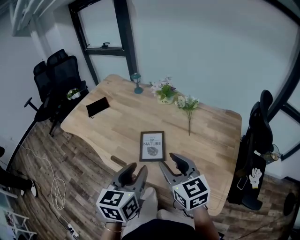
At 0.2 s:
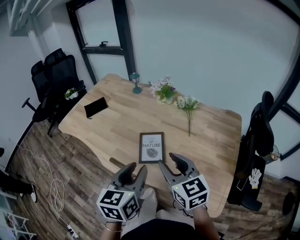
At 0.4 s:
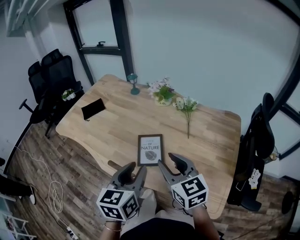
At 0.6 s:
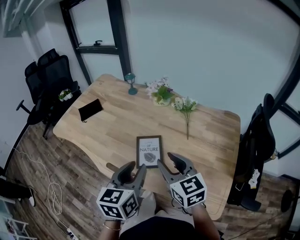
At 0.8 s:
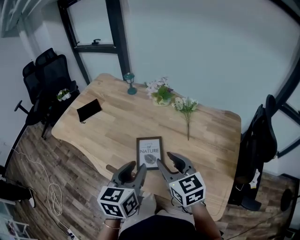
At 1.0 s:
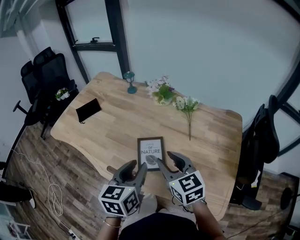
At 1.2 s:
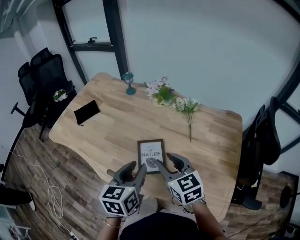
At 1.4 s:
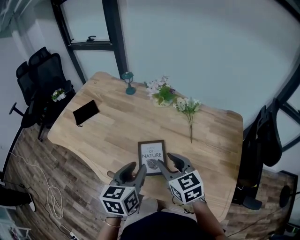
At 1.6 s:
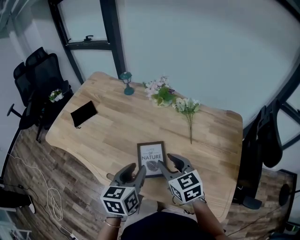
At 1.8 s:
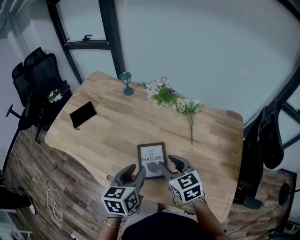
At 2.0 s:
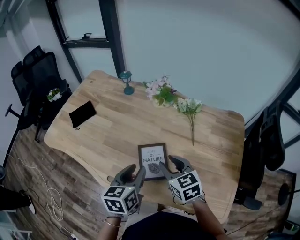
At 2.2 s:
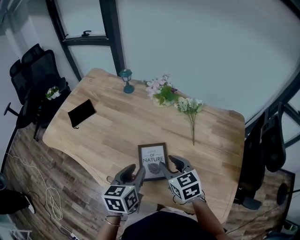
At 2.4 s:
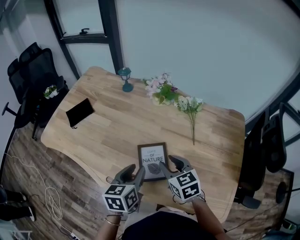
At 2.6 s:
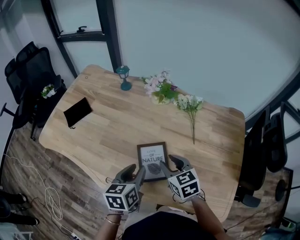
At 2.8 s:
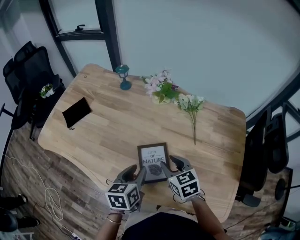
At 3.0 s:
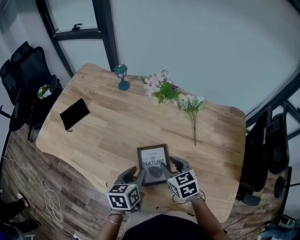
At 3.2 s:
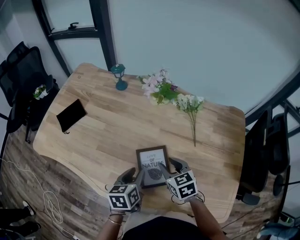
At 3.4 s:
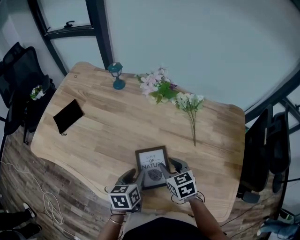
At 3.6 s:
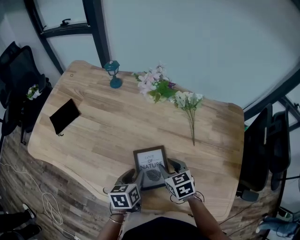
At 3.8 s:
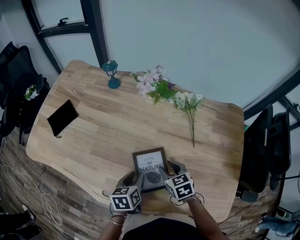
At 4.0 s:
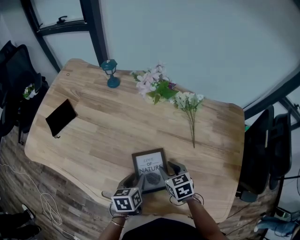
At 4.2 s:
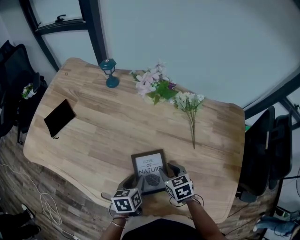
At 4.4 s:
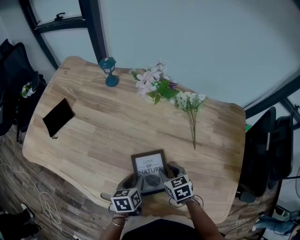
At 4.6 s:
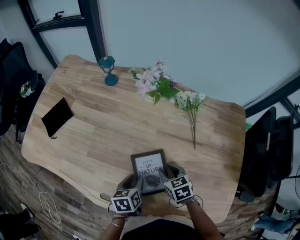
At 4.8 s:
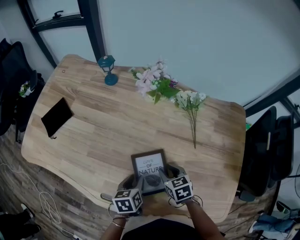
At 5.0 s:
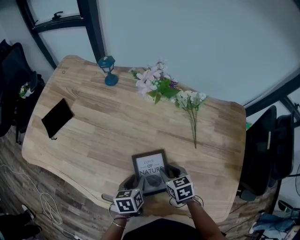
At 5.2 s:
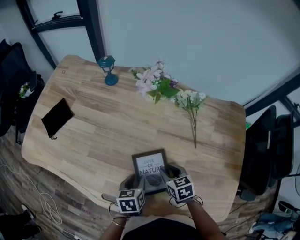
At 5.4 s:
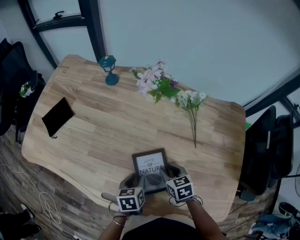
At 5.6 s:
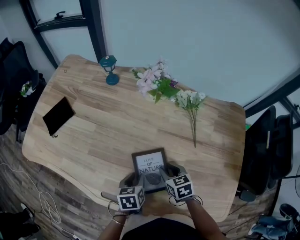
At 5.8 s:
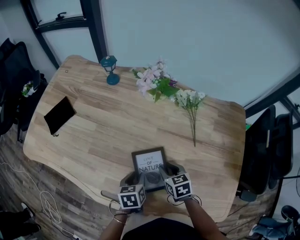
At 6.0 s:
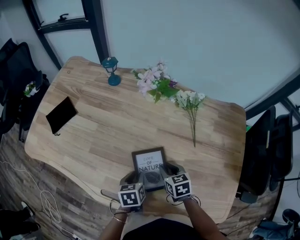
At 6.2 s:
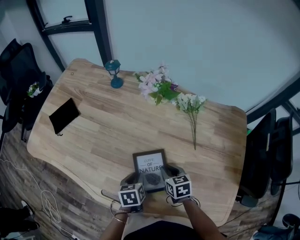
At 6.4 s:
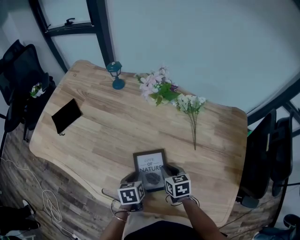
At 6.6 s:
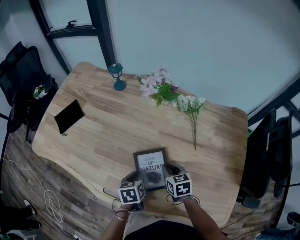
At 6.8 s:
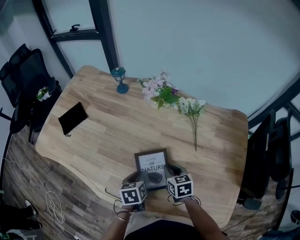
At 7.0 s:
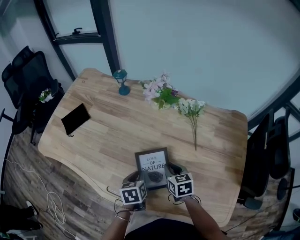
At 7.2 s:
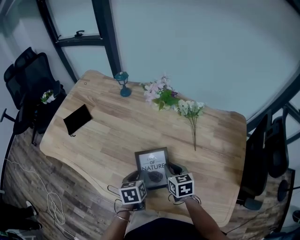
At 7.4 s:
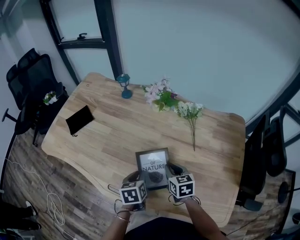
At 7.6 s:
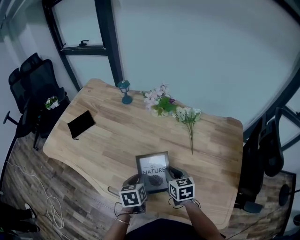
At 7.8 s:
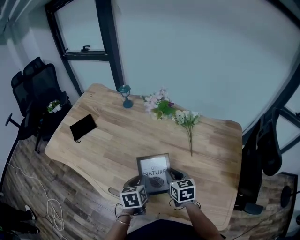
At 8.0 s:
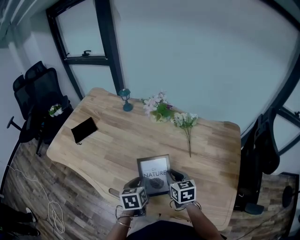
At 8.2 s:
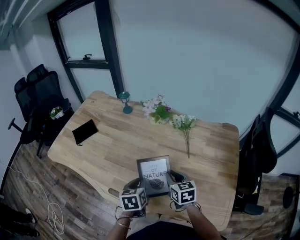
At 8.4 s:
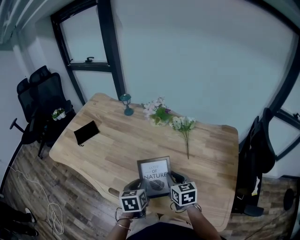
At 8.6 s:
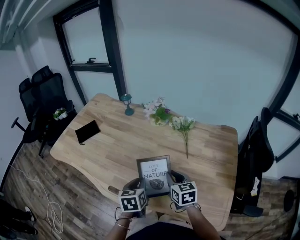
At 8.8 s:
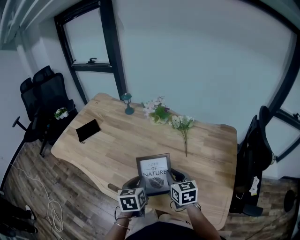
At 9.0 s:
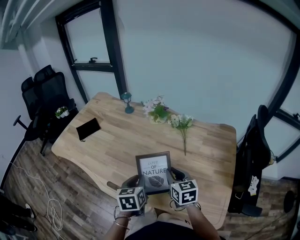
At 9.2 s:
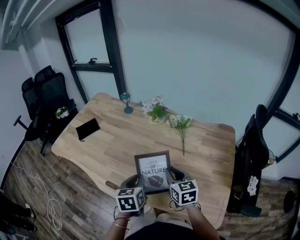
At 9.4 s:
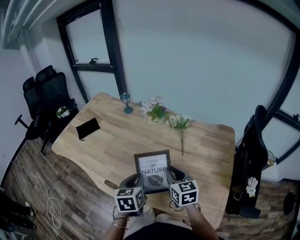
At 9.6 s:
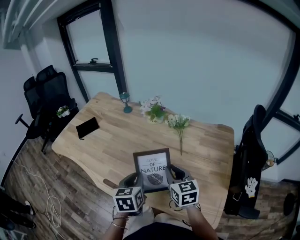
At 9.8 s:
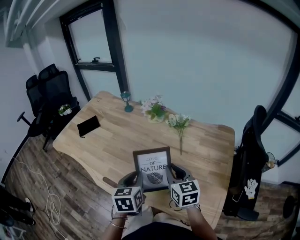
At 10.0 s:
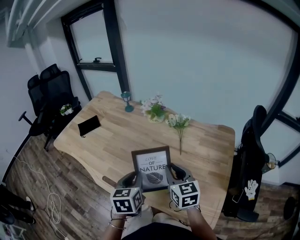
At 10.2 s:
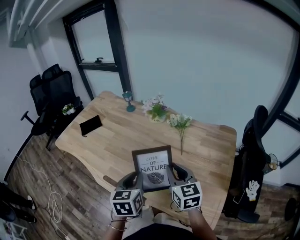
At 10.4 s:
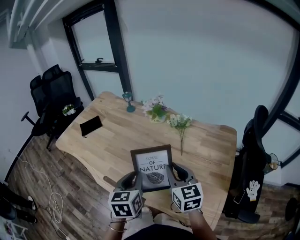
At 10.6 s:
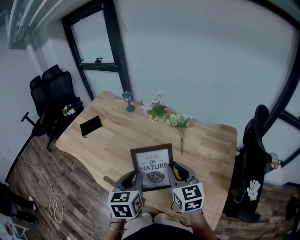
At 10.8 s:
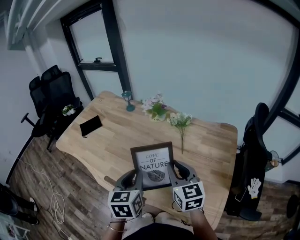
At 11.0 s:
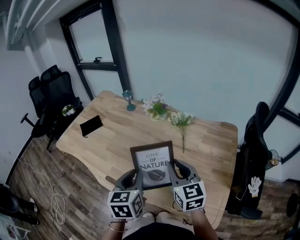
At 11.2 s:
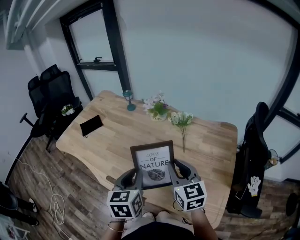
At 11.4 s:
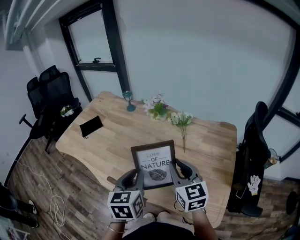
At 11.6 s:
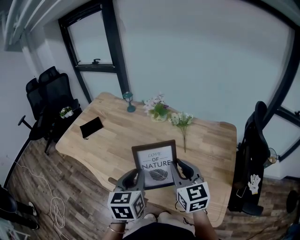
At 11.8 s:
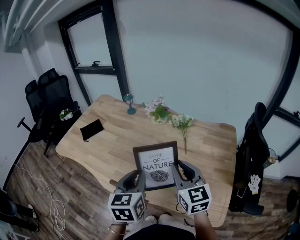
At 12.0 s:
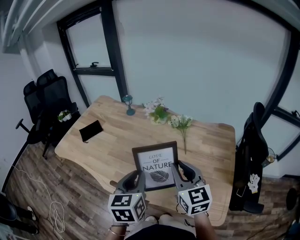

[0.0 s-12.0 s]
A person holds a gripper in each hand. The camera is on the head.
0.0 to 1.6 s: The grippers both shift forward and downward by about 15 cm.
1.6 to 3.0 s: The grippers both shift downward and forward by approximately 10 cm.
3.0 to 4.4 s: Both grippers travel together downward, some 10 cm.
4.4 to 6.0 s: The grippers move only a little.
6.0 to 7.6 s: Both grippers travel together upward, about 10 cm.
7.6 to 9.0 s: The two grippers go roughly 10 cm upward and backward.
9.0 to 10.4 s: Both grippers travel together upward, about 10 cm.
10.4 to 12.0 s: Both grippers move upward, some 5 cm.

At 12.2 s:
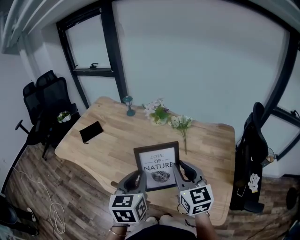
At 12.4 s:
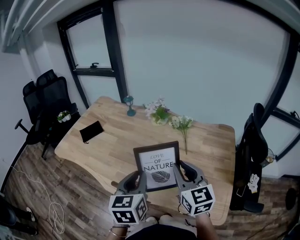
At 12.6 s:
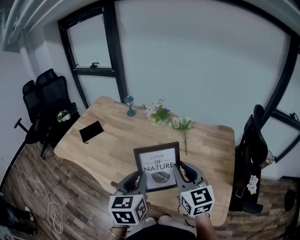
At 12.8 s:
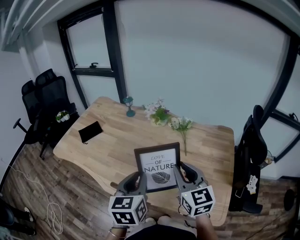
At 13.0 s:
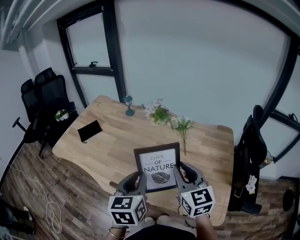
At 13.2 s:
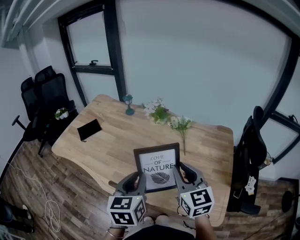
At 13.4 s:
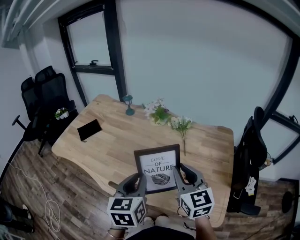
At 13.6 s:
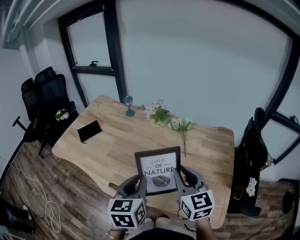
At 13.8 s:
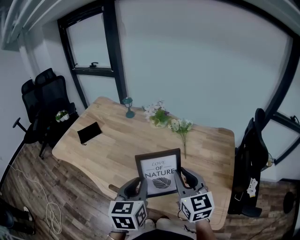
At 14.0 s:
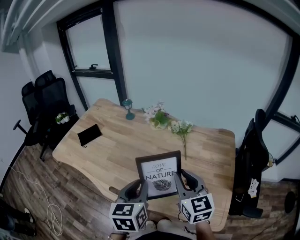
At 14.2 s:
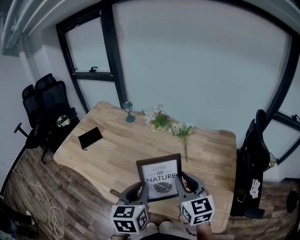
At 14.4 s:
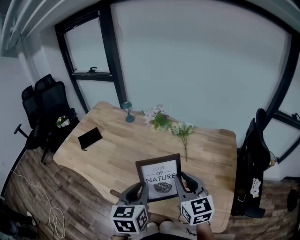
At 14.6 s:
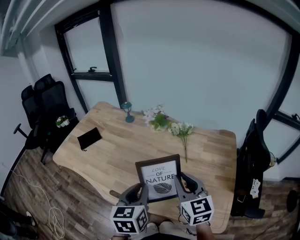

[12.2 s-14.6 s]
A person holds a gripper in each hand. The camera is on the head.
12.2 to 13.4 s: The two grippers keep their place.
13.4 to 14.6 s: The grippers make only small movements.

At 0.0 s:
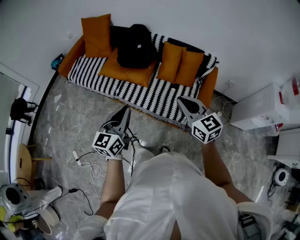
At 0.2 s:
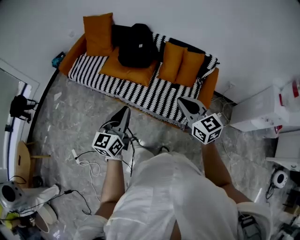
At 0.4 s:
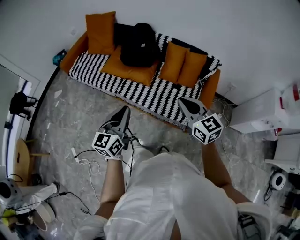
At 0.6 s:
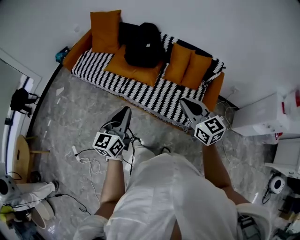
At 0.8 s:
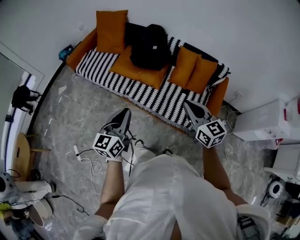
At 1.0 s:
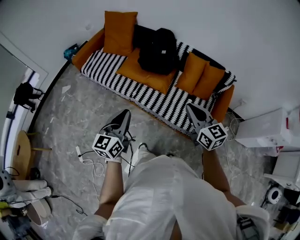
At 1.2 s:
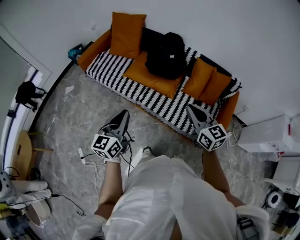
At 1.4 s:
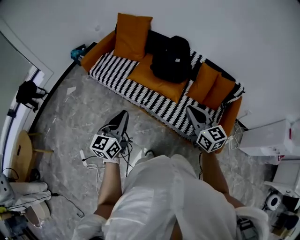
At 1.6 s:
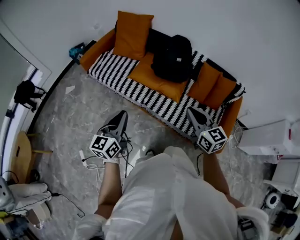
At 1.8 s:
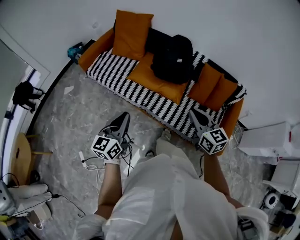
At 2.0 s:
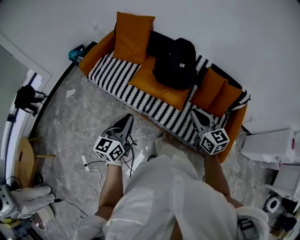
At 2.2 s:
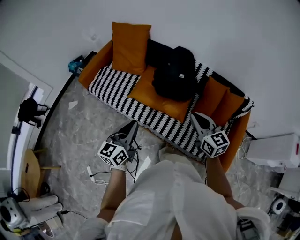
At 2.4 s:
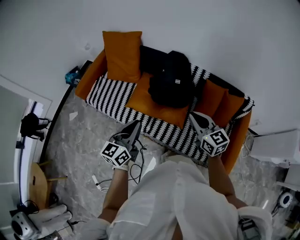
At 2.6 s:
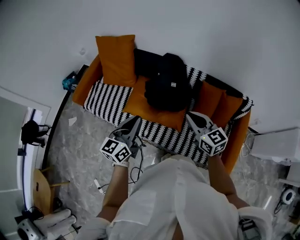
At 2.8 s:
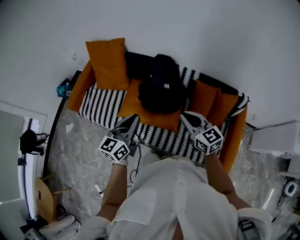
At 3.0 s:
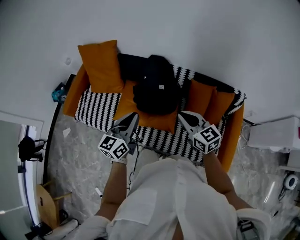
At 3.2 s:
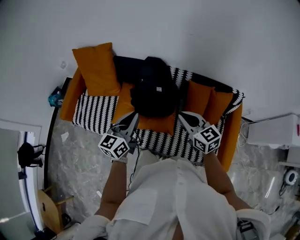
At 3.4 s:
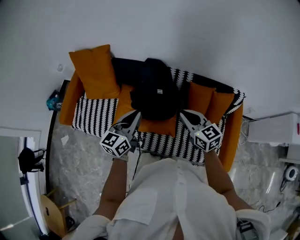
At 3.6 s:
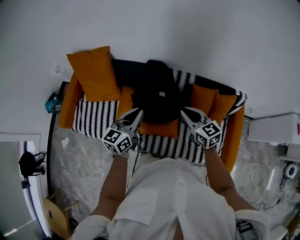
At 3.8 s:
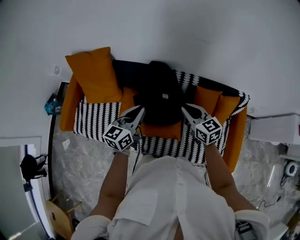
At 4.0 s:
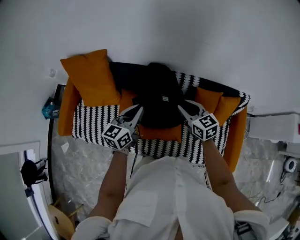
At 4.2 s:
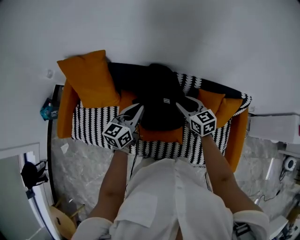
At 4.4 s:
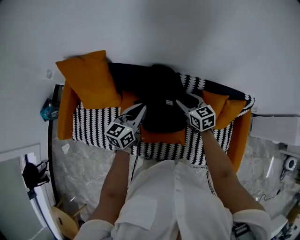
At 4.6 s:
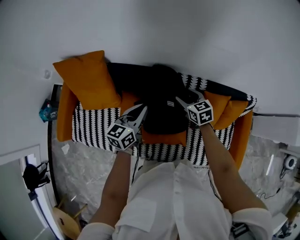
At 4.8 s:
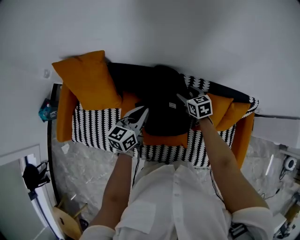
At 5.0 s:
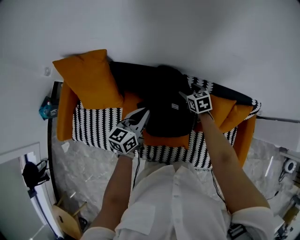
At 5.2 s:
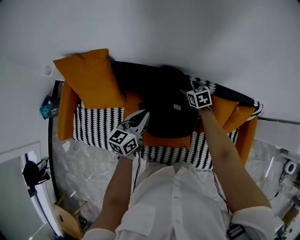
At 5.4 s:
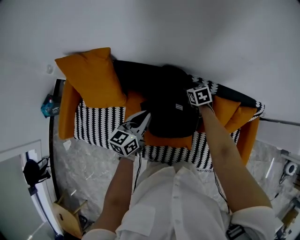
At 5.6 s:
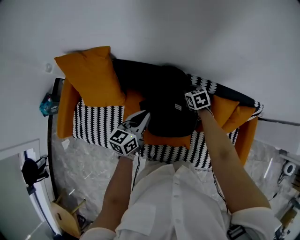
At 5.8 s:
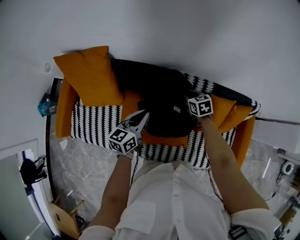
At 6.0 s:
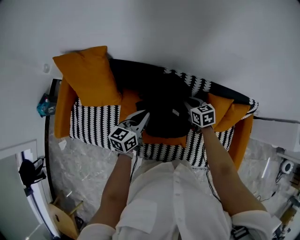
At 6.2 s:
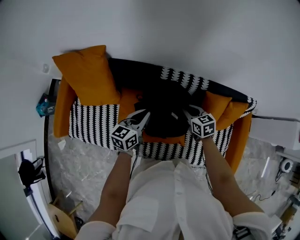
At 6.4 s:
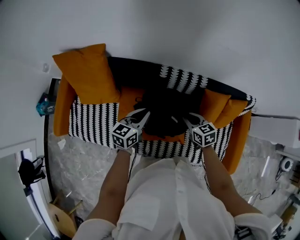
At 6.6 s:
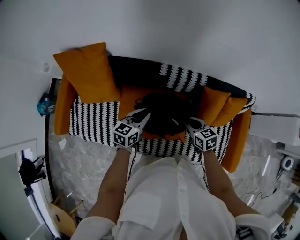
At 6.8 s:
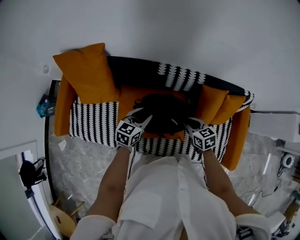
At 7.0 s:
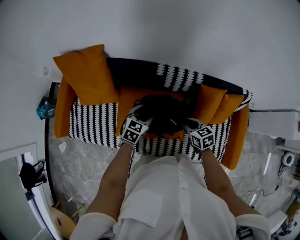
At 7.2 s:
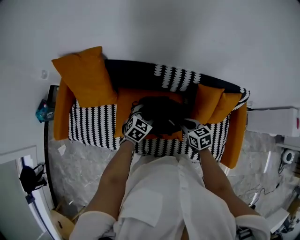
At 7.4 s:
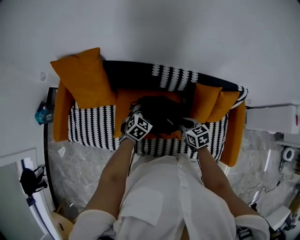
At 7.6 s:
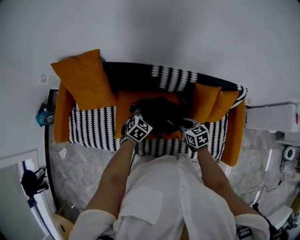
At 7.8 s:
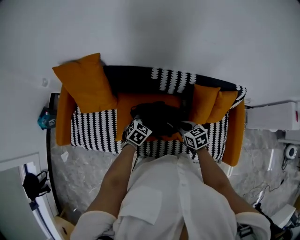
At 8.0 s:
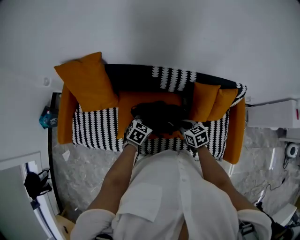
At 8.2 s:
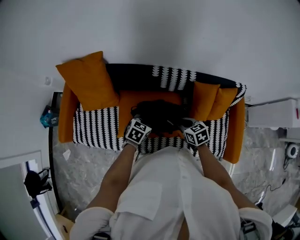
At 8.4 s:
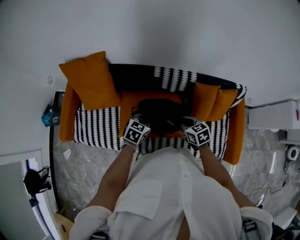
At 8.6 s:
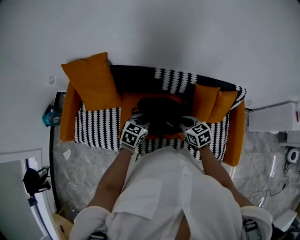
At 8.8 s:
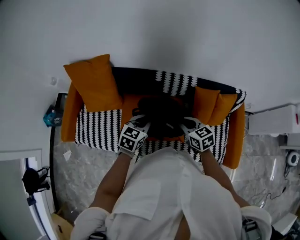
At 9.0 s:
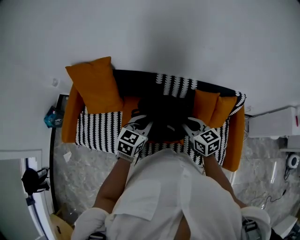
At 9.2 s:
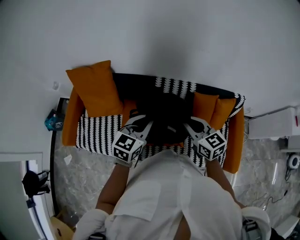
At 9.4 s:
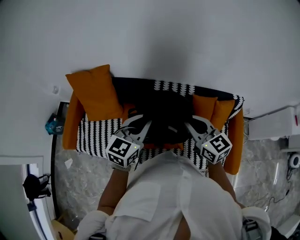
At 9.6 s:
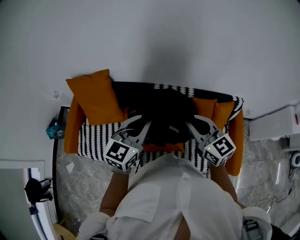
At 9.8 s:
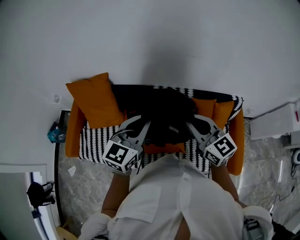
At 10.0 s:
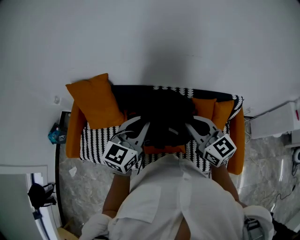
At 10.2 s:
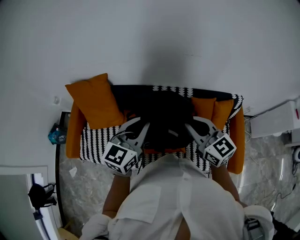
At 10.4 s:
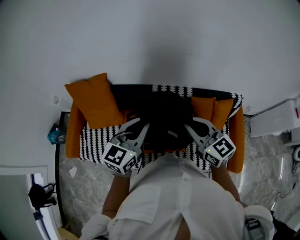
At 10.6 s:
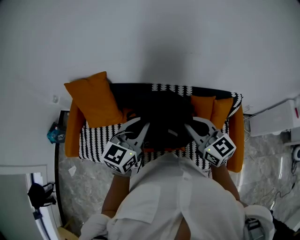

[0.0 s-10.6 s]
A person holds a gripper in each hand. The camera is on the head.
0.0 to 1.6 s: The left gripper heads to the left, covering about 25 cm, while the right gripper travels to the left and forward by approximately 25 cm.
1.6 to 3.0 s: The left gripper shifts roughly 40 cm forward and to the right, and turns by some 20 degrees; the right gripper travels forward by about 30 cm.
3.0 to 4.6 s: Both grippers travel together forward and downward, some 30 cm. The right gripper changes its angle by some 30 degrees, and opens.
4.6 to 6.0 s: The right gripper is displaced downward by some 5 cm, travels forward and back again, roughly 10 cm each way, and closes its fingers; the left gripper shifts by approximately 5 cm.
6.0 to 7.6 s: The left gripper travels downward, to the right and backward by approximately 10 cm, changes its angle by some 50 degrees, and opens and closes again. Meanwhile the right gripper shifts roughly 15 cm backward.
7.6 to 9.0 s: The grippers both shift upward by about 15 cm. The left gripper rotates approximately 30 degrees.
9.0 to 10.6 s: The grippers both shift upward by roughly 15 cm. The right gripper rotates about 20 degrees.
